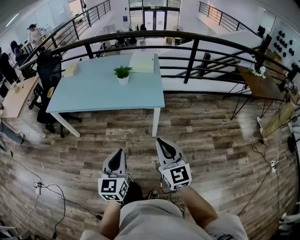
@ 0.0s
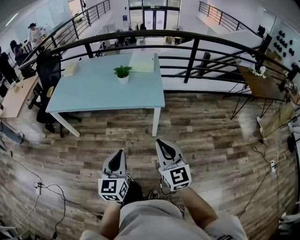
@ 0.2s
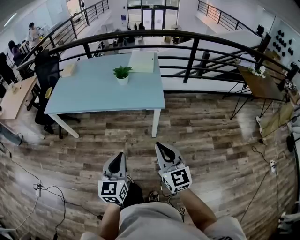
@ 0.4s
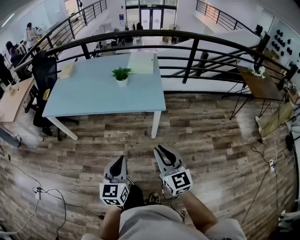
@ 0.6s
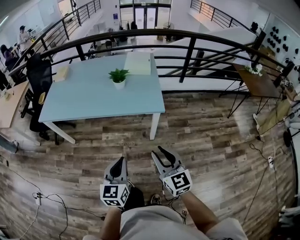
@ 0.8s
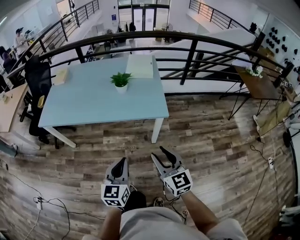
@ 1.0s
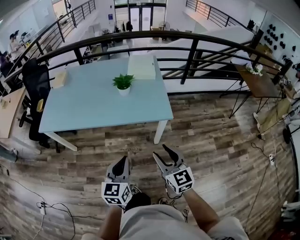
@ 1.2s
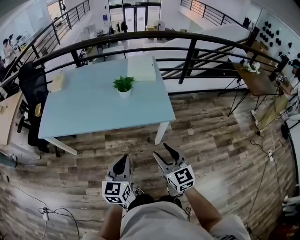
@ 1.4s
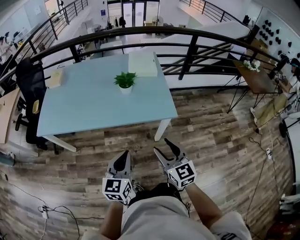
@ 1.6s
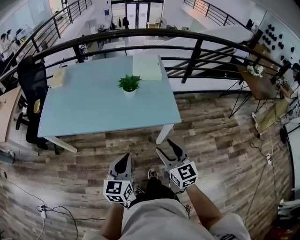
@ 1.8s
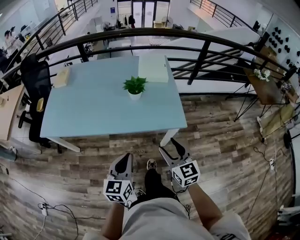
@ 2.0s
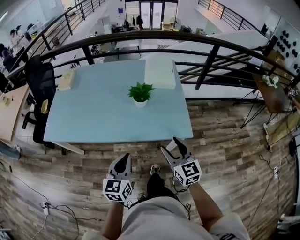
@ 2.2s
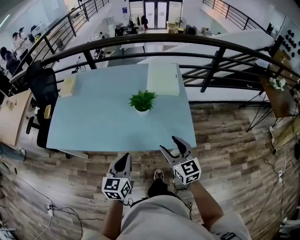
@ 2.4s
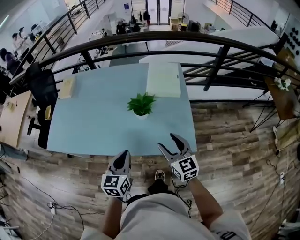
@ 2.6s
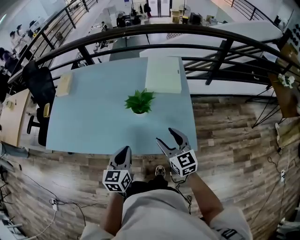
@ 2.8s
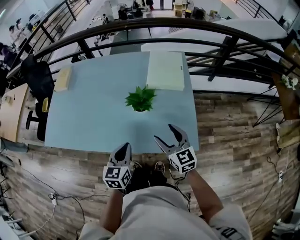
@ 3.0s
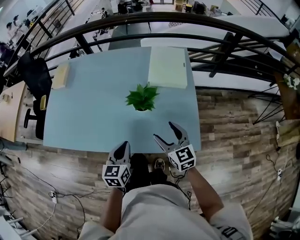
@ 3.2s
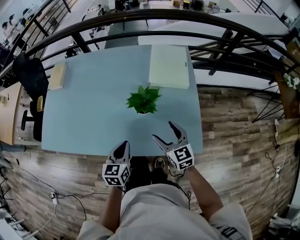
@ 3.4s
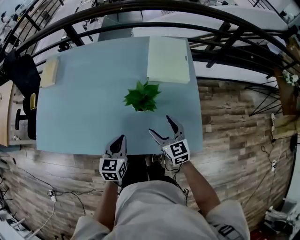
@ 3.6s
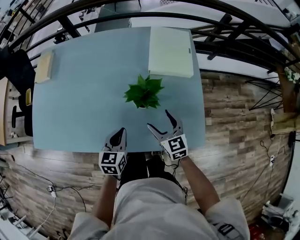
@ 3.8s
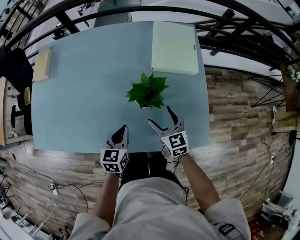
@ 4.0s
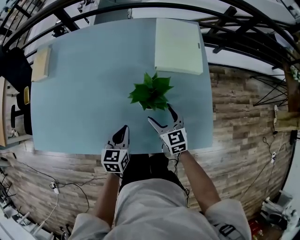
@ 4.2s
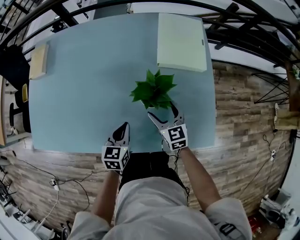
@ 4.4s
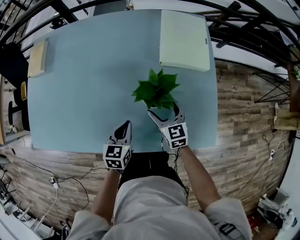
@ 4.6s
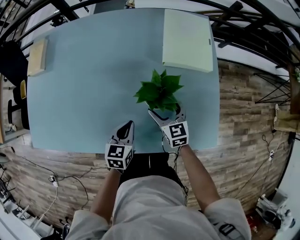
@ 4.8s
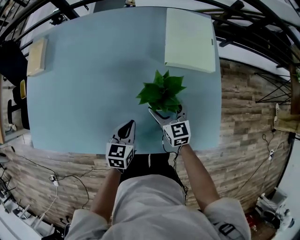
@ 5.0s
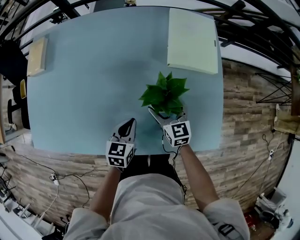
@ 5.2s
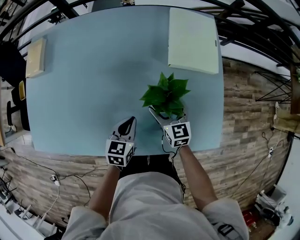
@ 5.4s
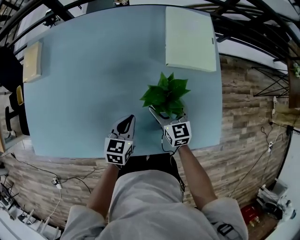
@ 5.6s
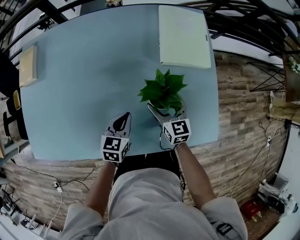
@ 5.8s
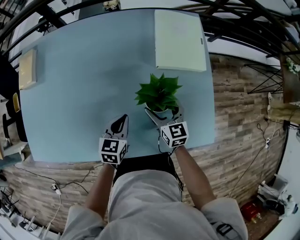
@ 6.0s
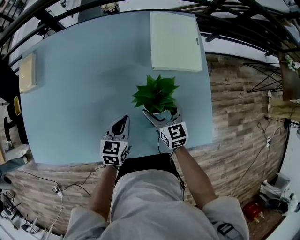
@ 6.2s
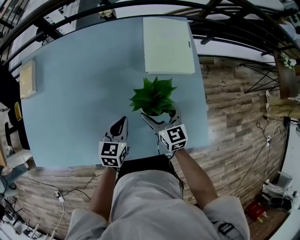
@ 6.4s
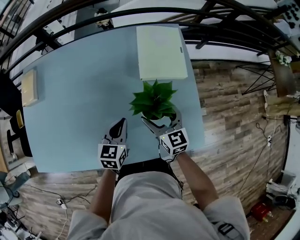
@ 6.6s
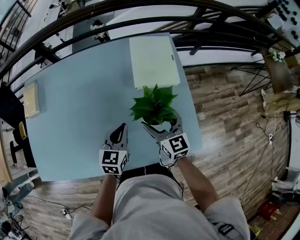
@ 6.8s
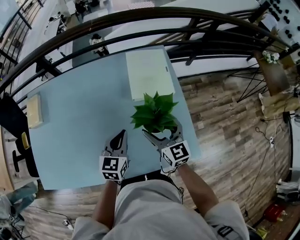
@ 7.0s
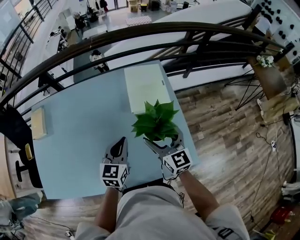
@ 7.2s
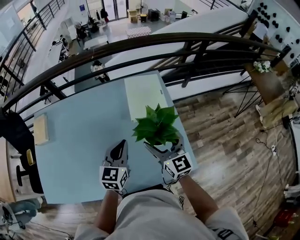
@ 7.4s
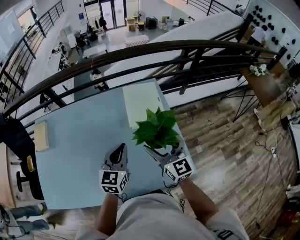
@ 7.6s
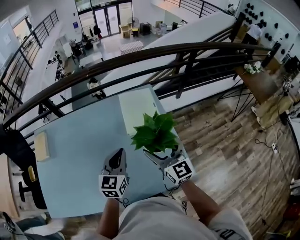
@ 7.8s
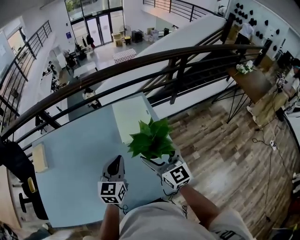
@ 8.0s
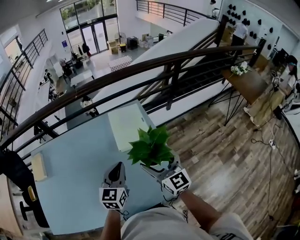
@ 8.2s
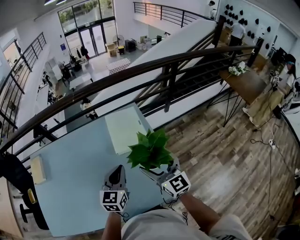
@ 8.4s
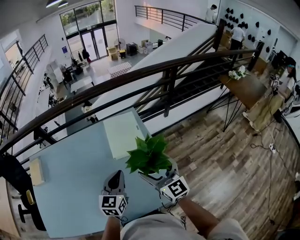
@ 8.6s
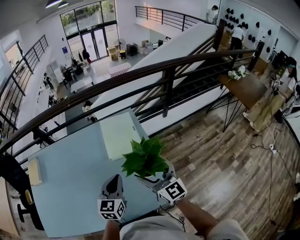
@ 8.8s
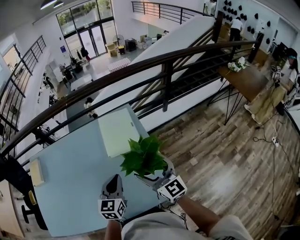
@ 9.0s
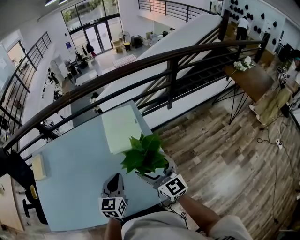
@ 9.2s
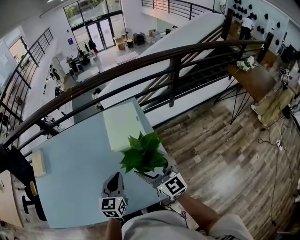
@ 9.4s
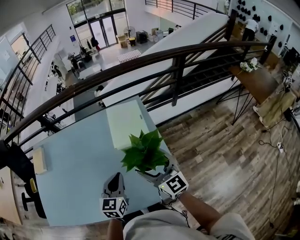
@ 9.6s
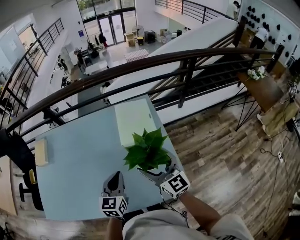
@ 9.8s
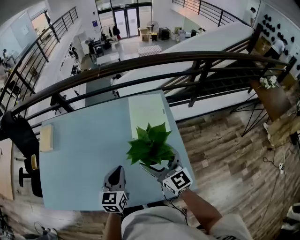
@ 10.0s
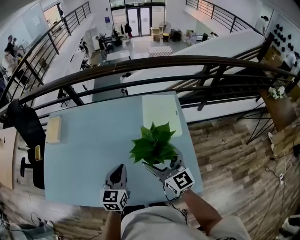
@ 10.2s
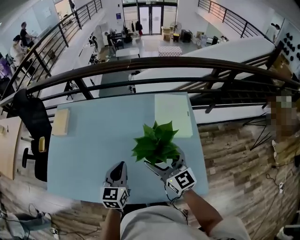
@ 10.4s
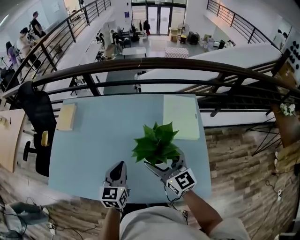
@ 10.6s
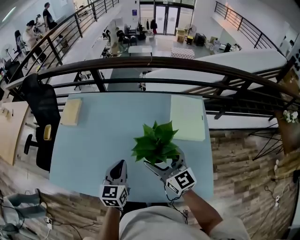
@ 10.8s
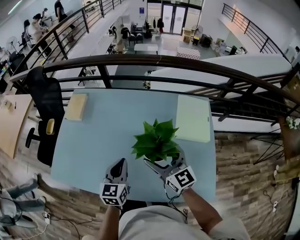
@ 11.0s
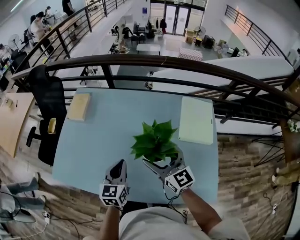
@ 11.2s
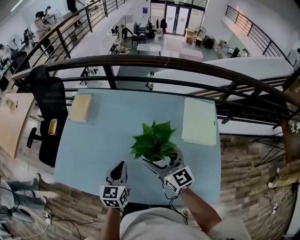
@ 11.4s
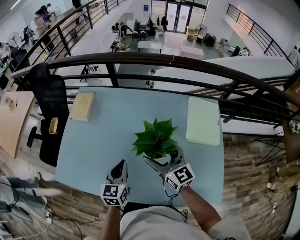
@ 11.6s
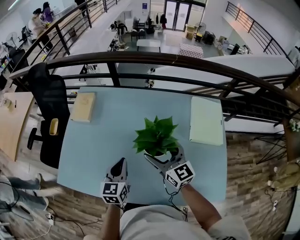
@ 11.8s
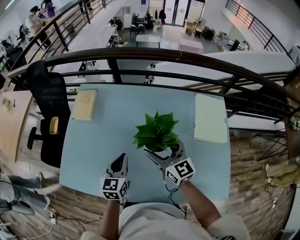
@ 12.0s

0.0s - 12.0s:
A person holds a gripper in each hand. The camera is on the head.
0.0s - 1.6s: The grippers both shift forward and to the left by roughly 20 cm. The right gripper opens.
1.6s - 3.0s: The two grippers go roughly 30 cm forward.
3.0s - 4.4s: Both grippers travel together downward, forward and to the left, about 20 cm.
4.4s - 6.0s: The left gripper moves forward, approximately 5 cm.
6.0s - 7.6s: The two grippers go approximately 30 cm upward and to the right. The right gripper turns by approximately 30 degrees, while the left gripper rotates approximately 30 degrees.
7.6s - 9.0s: Both grippers travel together to the right, about 10 cm.
9.0s - 10.4s: Both grippers travel together to the left, about 20 cm.
10.4s - 12.0s: The two grippers go some 25 cm to the left and forward.

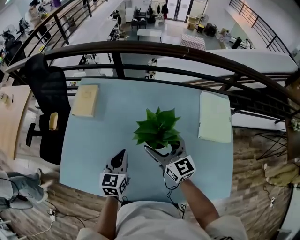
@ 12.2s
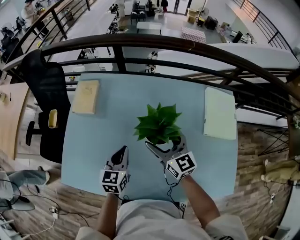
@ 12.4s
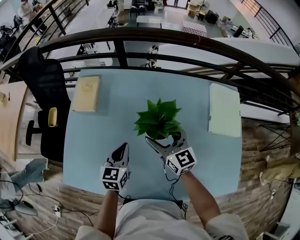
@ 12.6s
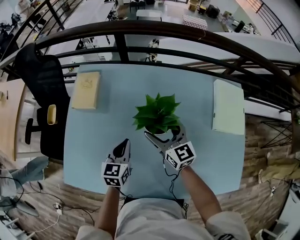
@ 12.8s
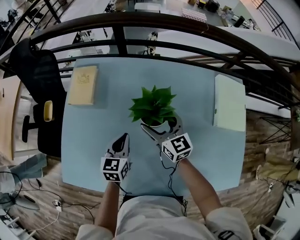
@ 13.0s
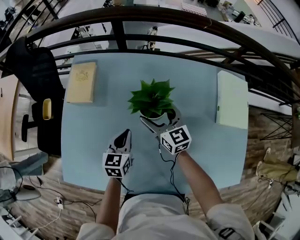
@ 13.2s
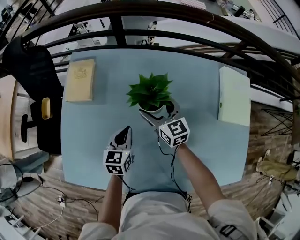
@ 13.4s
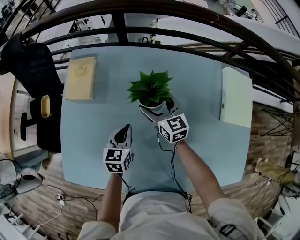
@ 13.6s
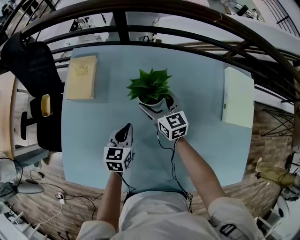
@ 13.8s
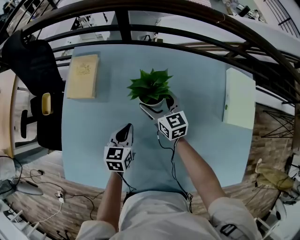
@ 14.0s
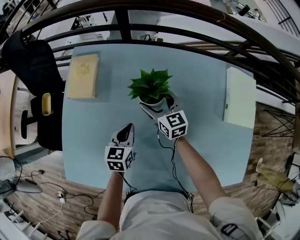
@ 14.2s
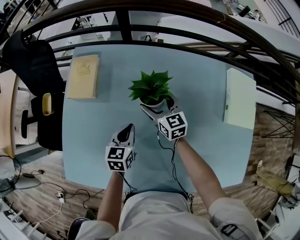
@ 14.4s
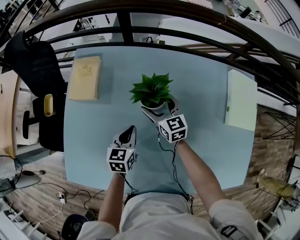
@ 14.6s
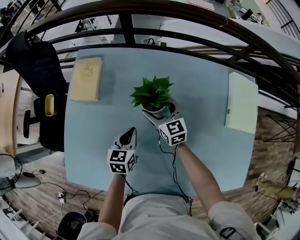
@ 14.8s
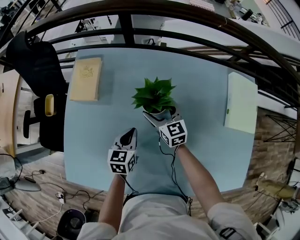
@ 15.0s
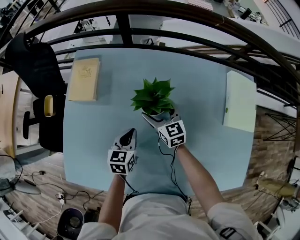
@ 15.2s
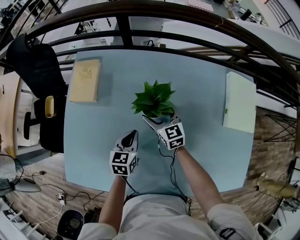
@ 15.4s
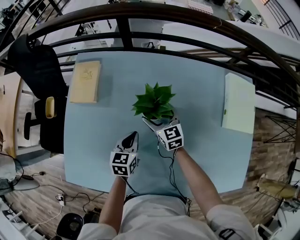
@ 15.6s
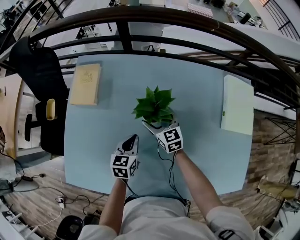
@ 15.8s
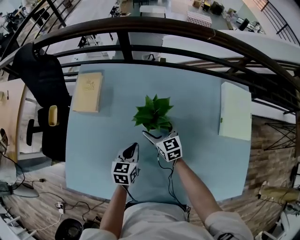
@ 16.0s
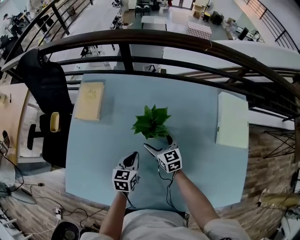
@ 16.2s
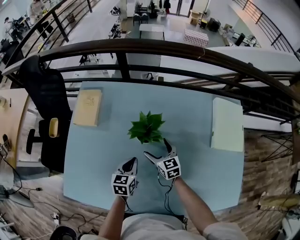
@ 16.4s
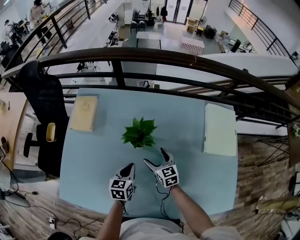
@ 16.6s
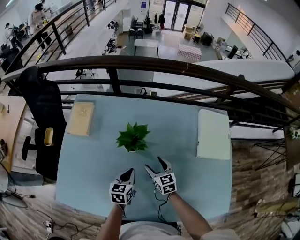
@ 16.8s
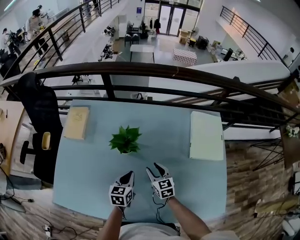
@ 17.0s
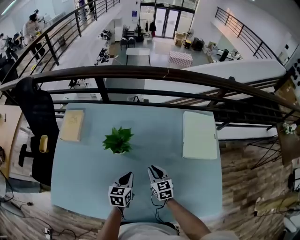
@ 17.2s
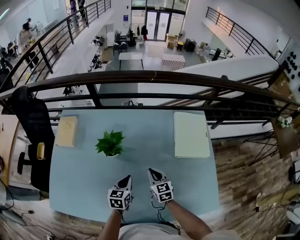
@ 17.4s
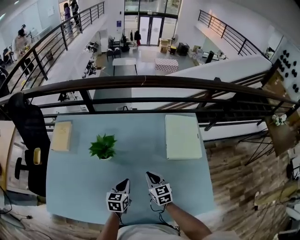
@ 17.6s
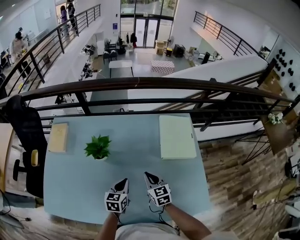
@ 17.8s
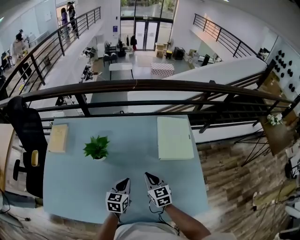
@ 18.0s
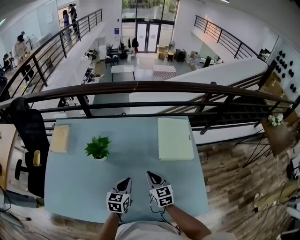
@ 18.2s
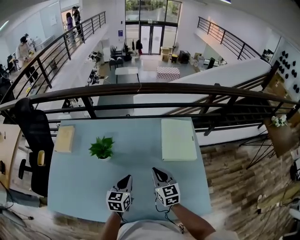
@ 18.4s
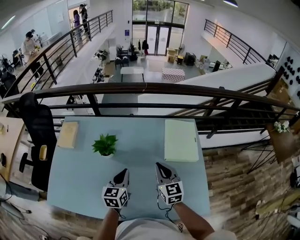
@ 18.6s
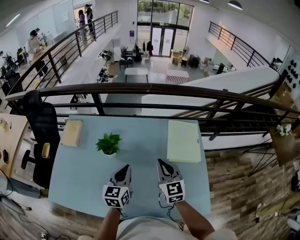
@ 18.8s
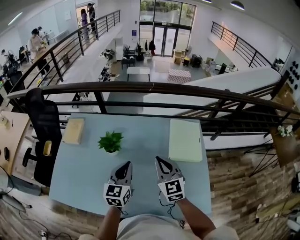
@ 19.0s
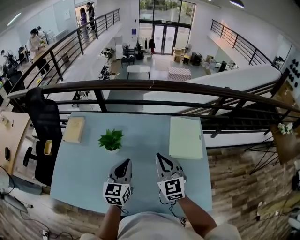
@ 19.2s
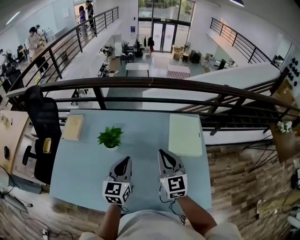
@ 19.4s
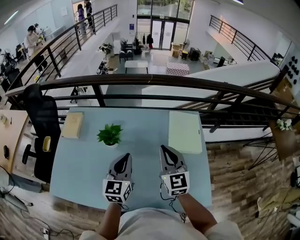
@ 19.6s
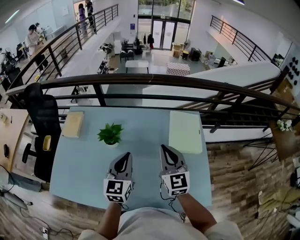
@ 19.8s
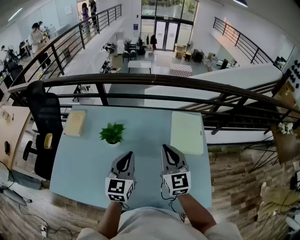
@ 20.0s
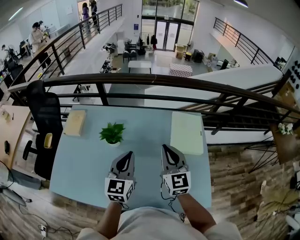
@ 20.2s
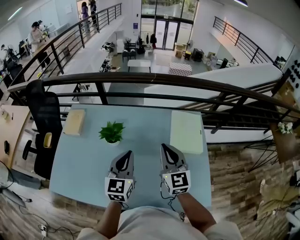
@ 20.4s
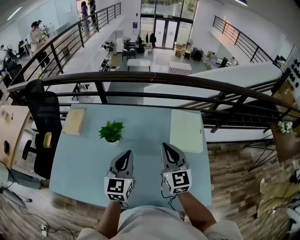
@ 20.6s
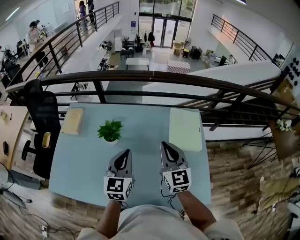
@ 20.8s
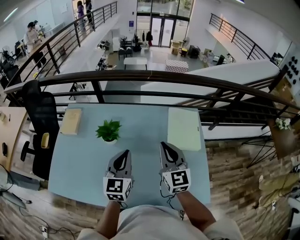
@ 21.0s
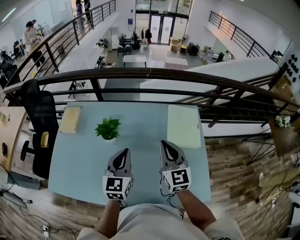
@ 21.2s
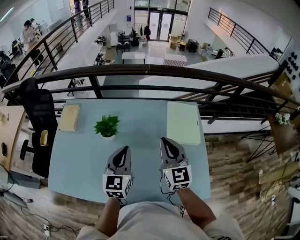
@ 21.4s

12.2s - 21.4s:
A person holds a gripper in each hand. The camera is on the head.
12.2s - 13.8s: The right gripper shifts about 25 cm downward, forward and to the left, while the left gripper travels downward, forward and to the left by some 15 cm.
13.8s - 15.2s: The grippers make only small movements.
15.2s - 16.8s: The right gripper is displaced backward and to the right by approximately 15 cm. The left gripper moves to the right and backward, some 10 cm.
16.8s - 18.4s: Both grippers travel together to the right and upward, some 25 cm. The right gripper closes.
18.4s - 19.8s: Both grippers travel together upward, approximately 15 cm. The left gripper turns by about 20 degrees.
19.8s - 21.4s: Both grippers stay put.

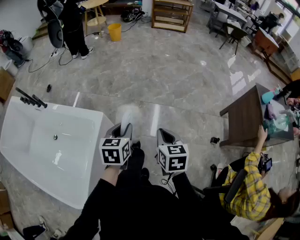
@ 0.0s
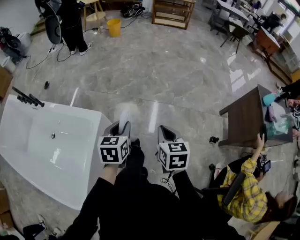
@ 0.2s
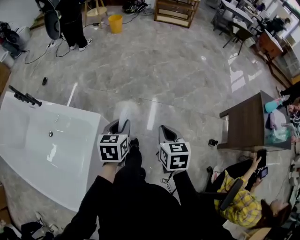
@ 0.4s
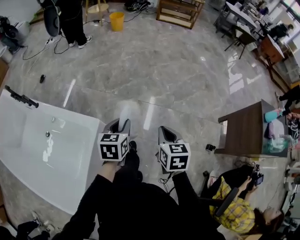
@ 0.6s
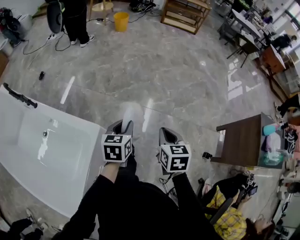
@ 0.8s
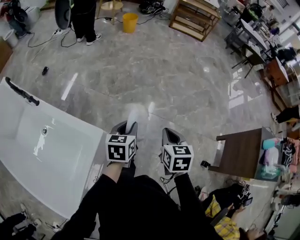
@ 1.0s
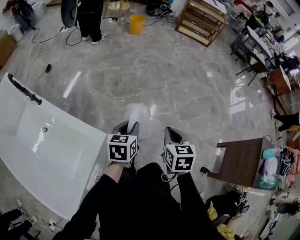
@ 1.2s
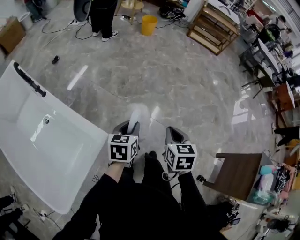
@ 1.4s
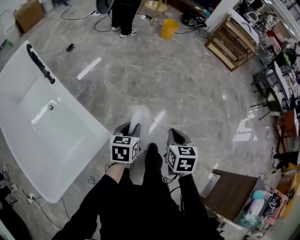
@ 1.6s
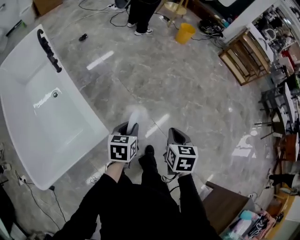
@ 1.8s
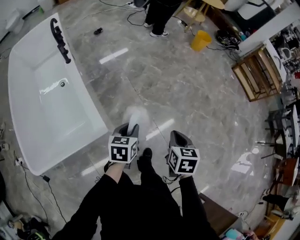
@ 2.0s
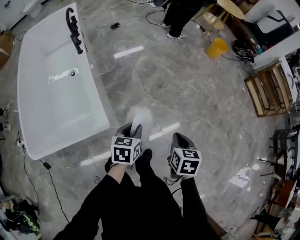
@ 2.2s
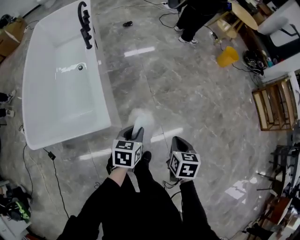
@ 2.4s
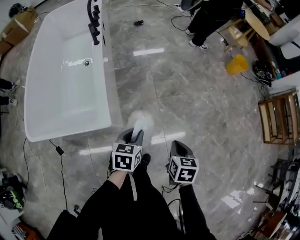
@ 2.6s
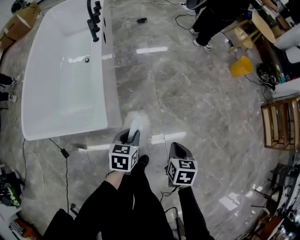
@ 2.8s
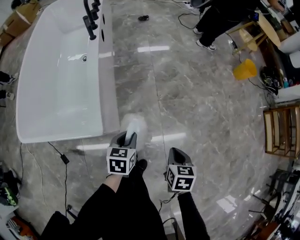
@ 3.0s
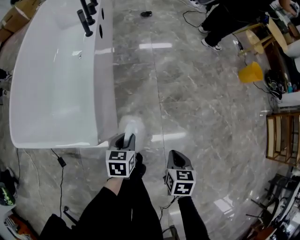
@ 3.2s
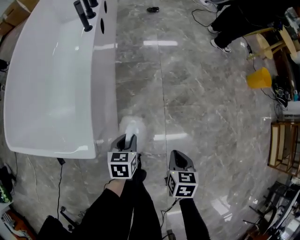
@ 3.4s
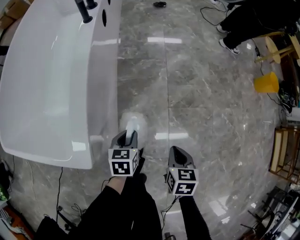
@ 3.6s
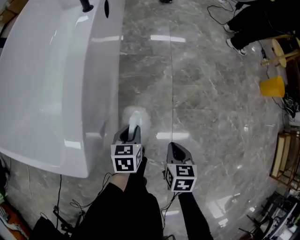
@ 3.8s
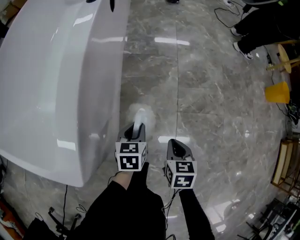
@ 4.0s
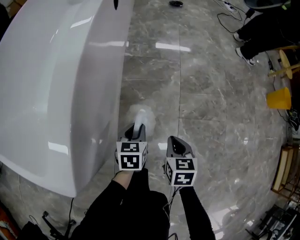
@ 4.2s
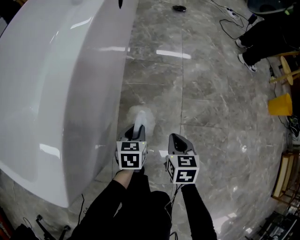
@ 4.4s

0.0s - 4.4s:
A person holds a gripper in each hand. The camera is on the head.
0.0s - 1.4s: The grippers both shift forward by approximately 25 cm.
1.4s - 3.0s: The left gripper heads downward, covering about 15 cm, and changes its angle by some 50 degrees. Meanwhile the right gripper ends up roughly 25 cm from where it was, and changes its angle by roughly 50 degrees.
3.0s - 4.4s: The grippers both shift downward and forward by approximately 40 cm. The right gripper turns by about 20 degrees.
